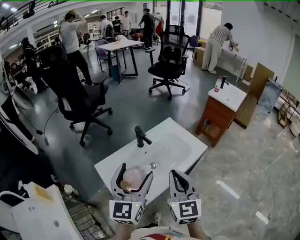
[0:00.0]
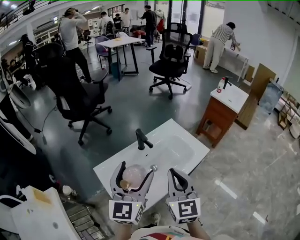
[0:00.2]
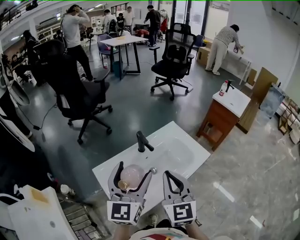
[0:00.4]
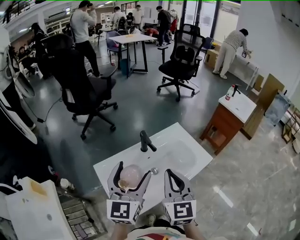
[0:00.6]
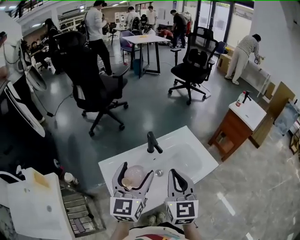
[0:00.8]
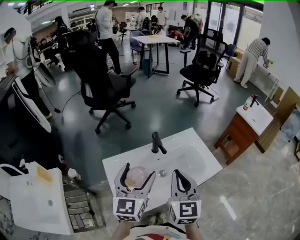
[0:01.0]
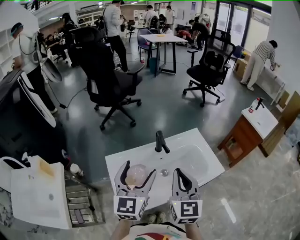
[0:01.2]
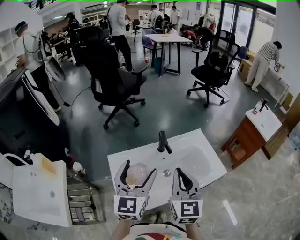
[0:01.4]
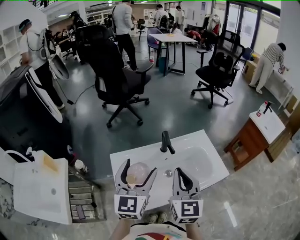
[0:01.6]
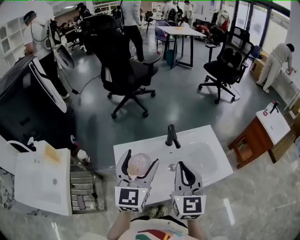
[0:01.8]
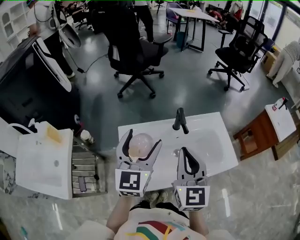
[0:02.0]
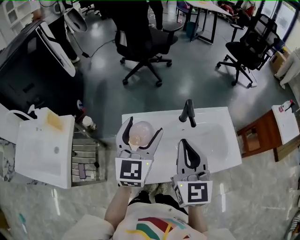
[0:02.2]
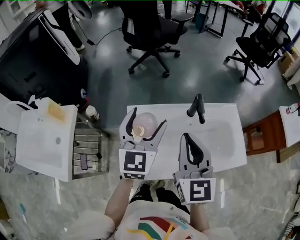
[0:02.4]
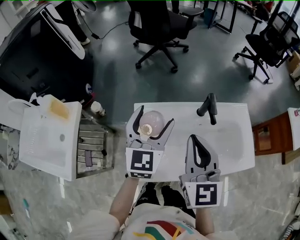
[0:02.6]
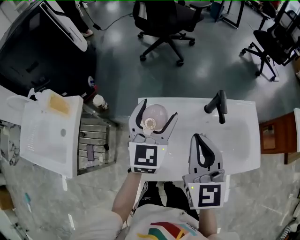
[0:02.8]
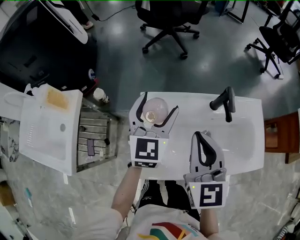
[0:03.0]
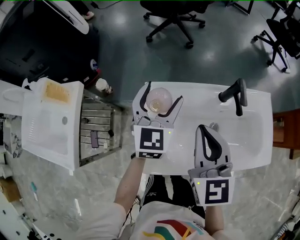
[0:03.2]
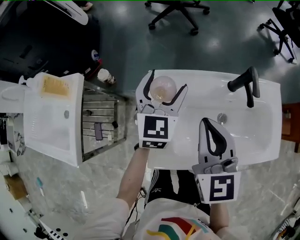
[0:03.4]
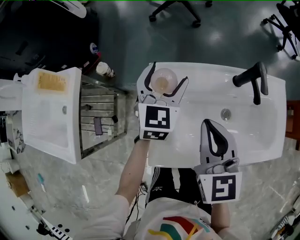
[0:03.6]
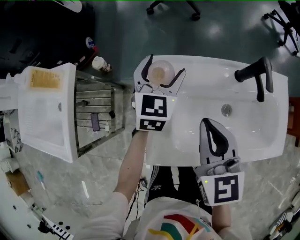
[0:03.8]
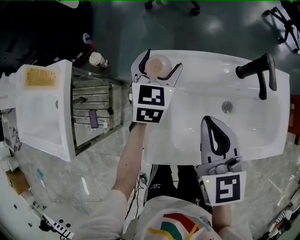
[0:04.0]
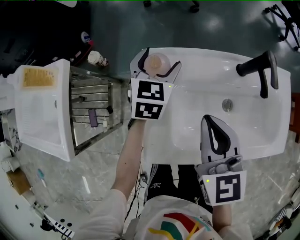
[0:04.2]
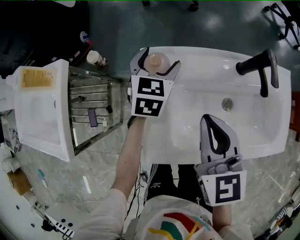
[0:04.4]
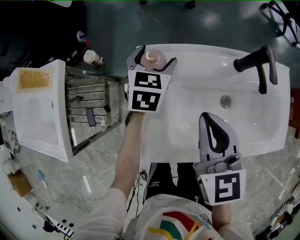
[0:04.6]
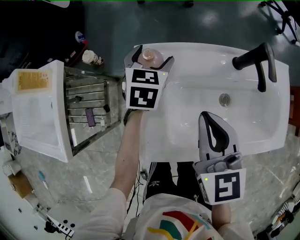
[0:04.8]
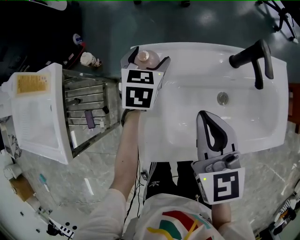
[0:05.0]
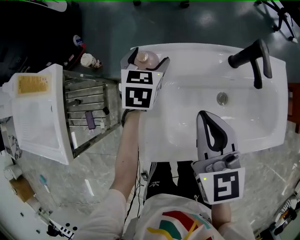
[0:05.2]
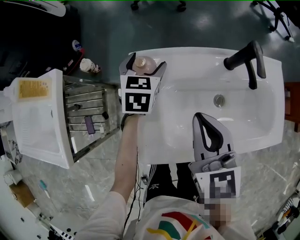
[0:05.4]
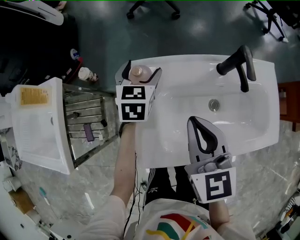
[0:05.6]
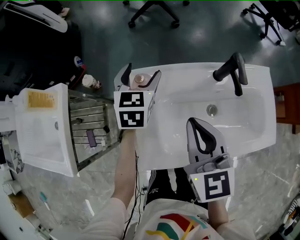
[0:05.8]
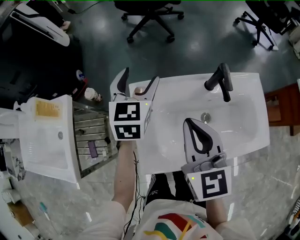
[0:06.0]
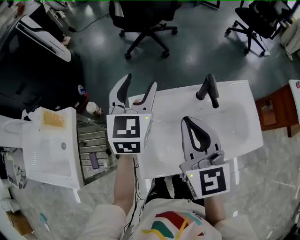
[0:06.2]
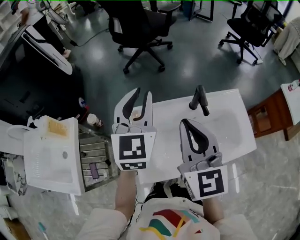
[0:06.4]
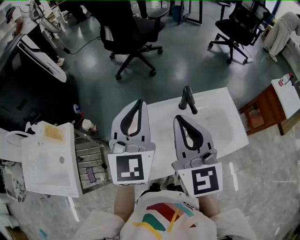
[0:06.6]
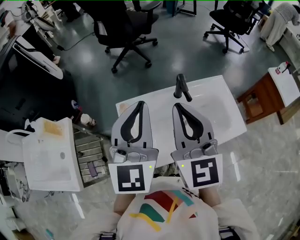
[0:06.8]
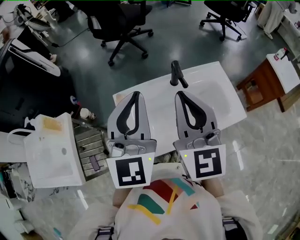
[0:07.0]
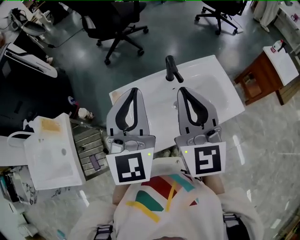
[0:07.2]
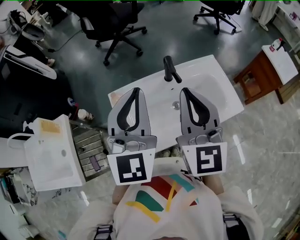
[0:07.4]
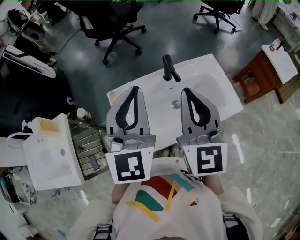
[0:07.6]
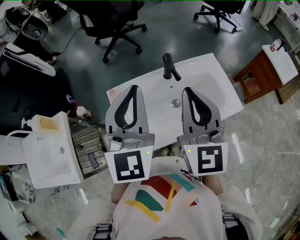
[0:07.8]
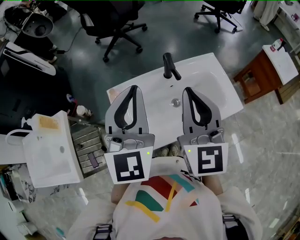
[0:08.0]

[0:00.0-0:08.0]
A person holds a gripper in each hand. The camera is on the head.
0:00.0 to 0:01.6: The right gripper is displaced forward by some 10 cm; the left gripper moves forward, roughly 5 cm, and swivels approximately 20 degrees.
0:01.6 to 0:03.2: The right gripper shifts about 15 cm to the left, downward and forward, and rotates some 30 degrees; the left gripper goes approximately 20 cm downward, forward and to the left.
0:03.2 to 0:04.8: The right gripper shifts approximately 10 cm downward. The left gripper heads downward, covering approximately 15 cm, and rotates about 20 degrees.
0:04.8 to 0:06.4: The right gripper heads upward, covering about 20 cm, and changes its angle by roughly 20 degrees. The left gripper is displaced upward by approximately 30 cm, tilts its fingers some 30 degrees upward, and closes its fingers.
0:06.4 to 0:08.0: The right gripper is displaced to the right and backward by some 10 cm, while the left gripper moves backward, to the right and upward, approximately 15 cm.

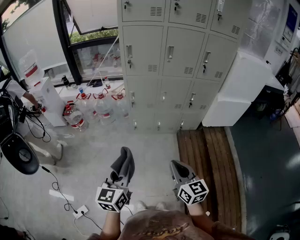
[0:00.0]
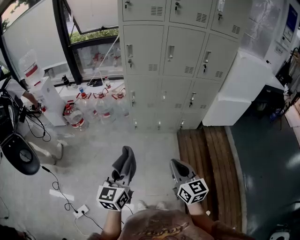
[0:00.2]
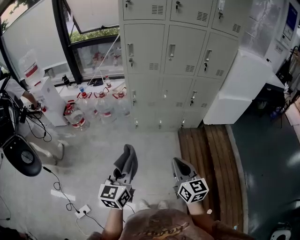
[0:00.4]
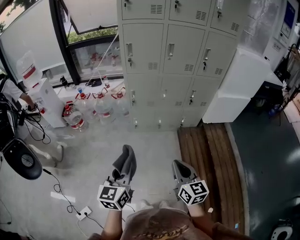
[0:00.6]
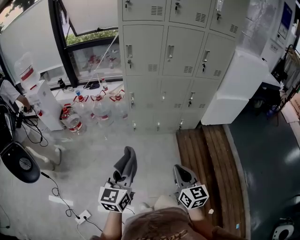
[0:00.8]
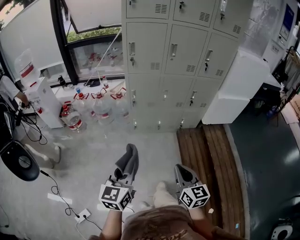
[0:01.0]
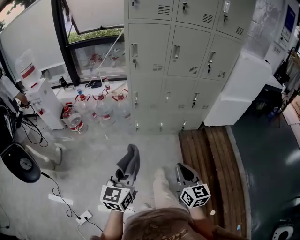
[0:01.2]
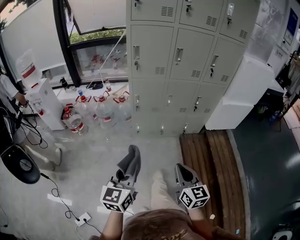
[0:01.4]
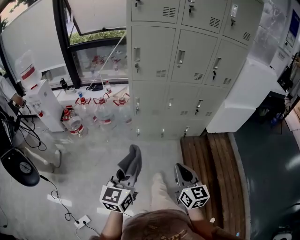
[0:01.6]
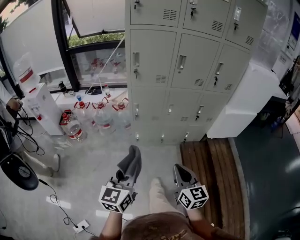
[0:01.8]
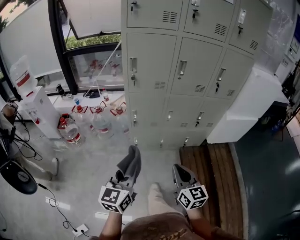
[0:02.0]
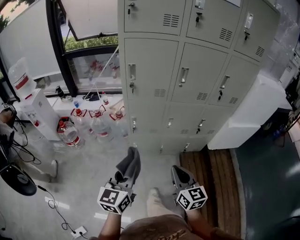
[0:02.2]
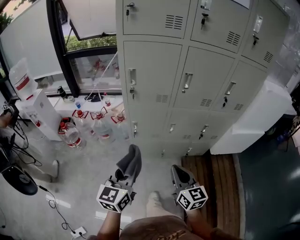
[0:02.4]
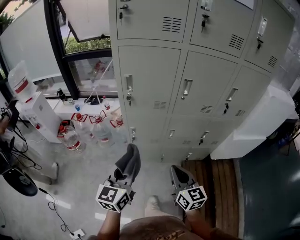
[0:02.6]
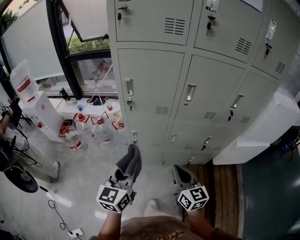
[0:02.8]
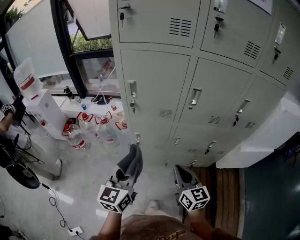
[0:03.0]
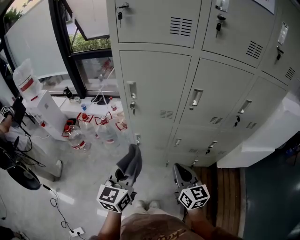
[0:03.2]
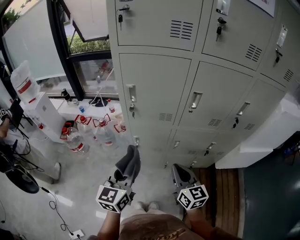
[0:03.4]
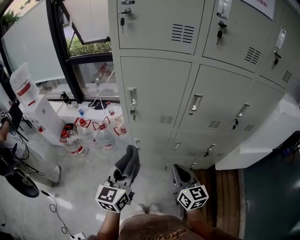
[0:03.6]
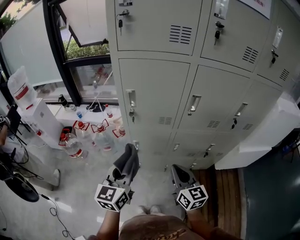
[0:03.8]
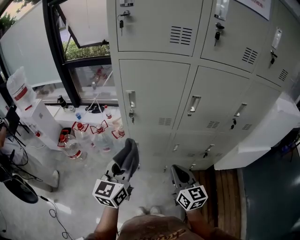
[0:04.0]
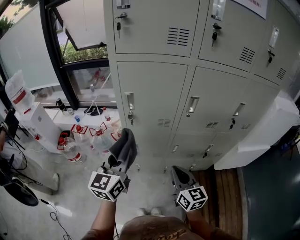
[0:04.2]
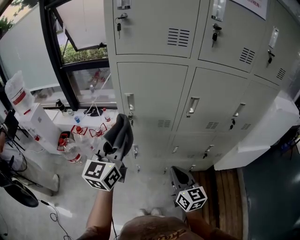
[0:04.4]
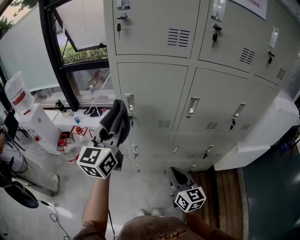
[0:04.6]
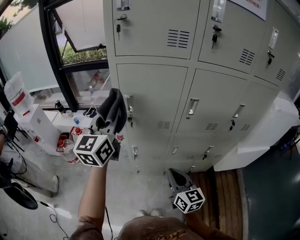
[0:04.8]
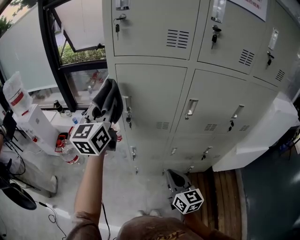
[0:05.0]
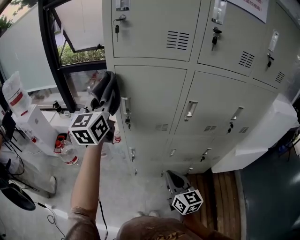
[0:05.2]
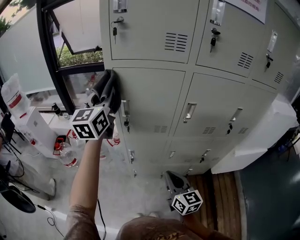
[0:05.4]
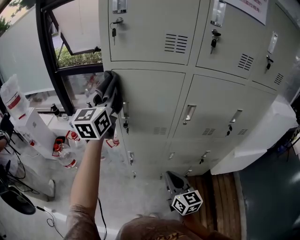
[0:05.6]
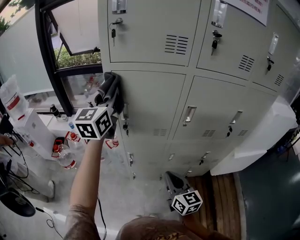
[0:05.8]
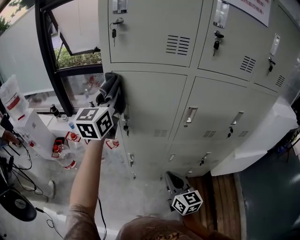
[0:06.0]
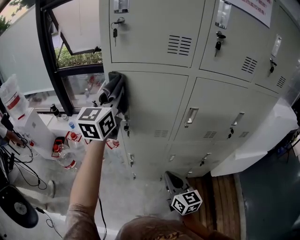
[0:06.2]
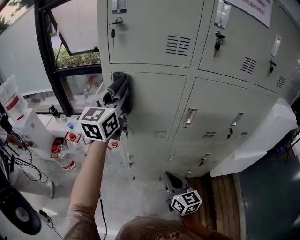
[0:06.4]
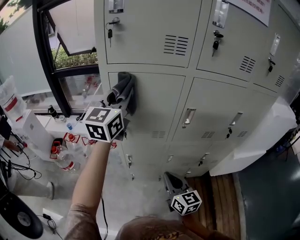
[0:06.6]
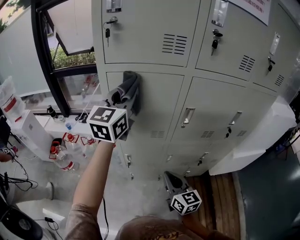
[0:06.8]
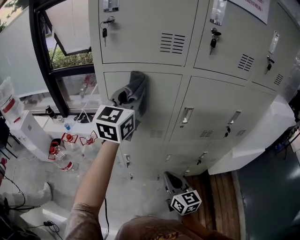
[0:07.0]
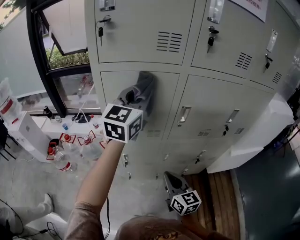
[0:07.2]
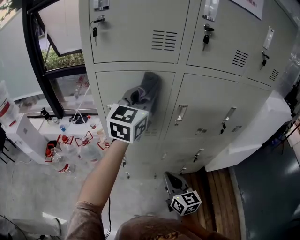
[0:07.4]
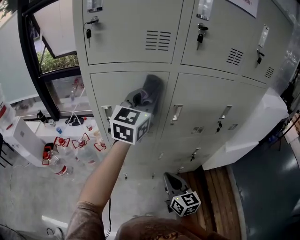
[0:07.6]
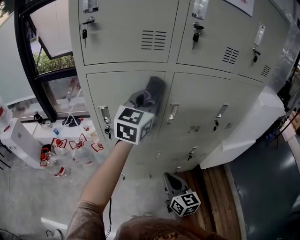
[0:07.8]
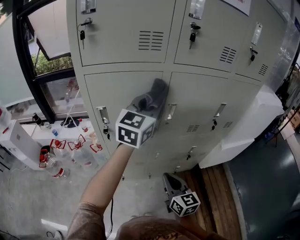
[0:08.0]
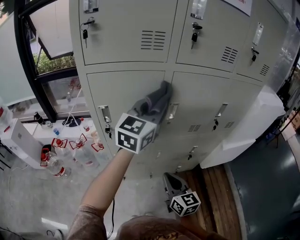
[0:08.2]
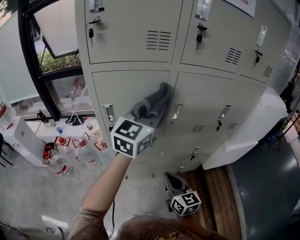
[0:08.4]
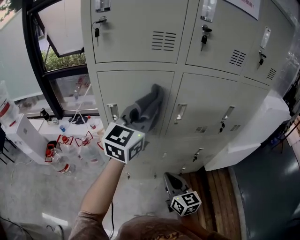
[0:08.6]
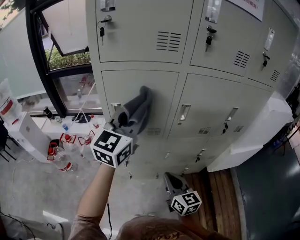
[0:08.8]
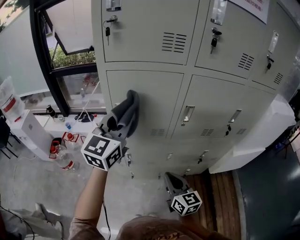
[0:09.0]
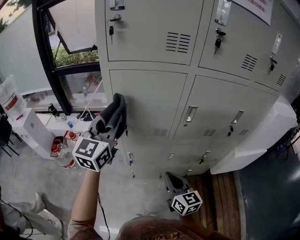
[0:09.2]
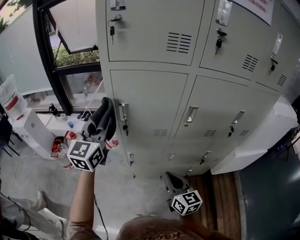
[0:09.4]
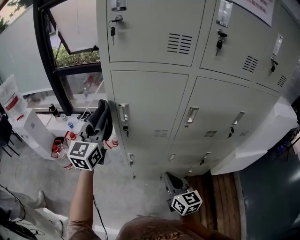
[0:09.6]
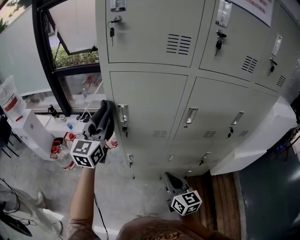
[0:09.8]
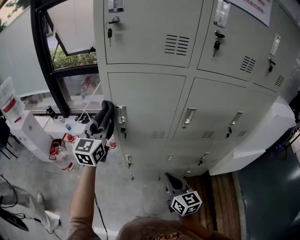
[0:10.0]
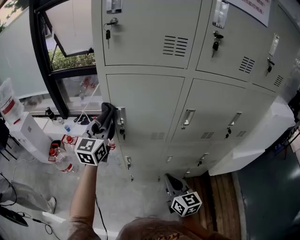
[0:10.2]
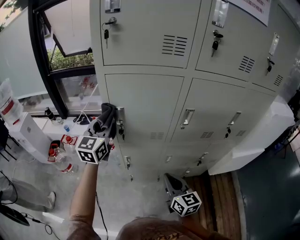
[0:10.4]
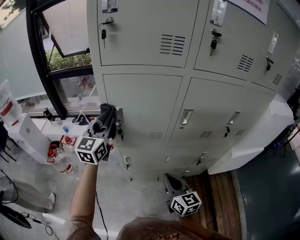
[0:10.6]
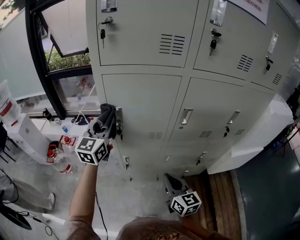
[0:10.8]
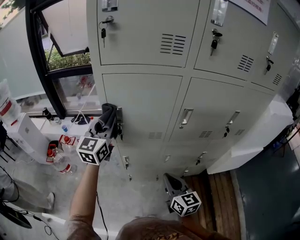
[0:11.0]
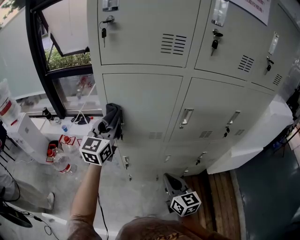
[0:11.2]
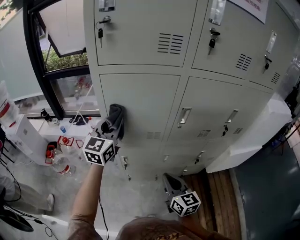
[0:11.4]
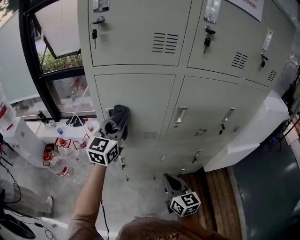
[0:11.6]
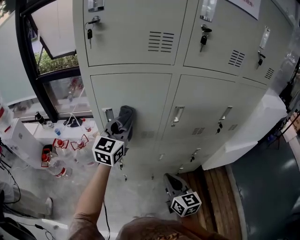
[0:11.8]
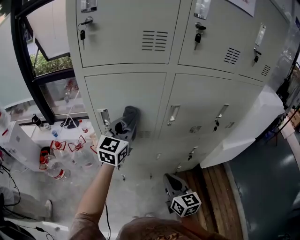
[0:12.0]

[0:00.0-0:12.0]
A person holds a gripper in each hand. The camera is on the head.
0:00.0 to 0:01.6: The grippers both shift forward by some 5 cm.
0:01.6 to 0:03.0: The two grippers go approximately 30 cm forward.
0:03.0 to 0:04.4: The left gripper travels forward, upward and to the left by some 15 cm.
0:04.4 to 0:06.0: The left gripper moves forward and upward, approximately 20 cm.
0:06.0 to 0:07.6: The left gripper moves to the right, roughly 20 cm.
0:07.6 to 0:09.0: The left gripper is displaced to the left and backward by some 15 cm.
0:09.0 to 0:10.4: The left gripper heads to the left, downward and forward, covering roughly 15 cm.
0:10.4 to 0:12.0: The left gripper goes some 15 cm to the right.

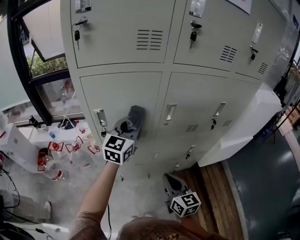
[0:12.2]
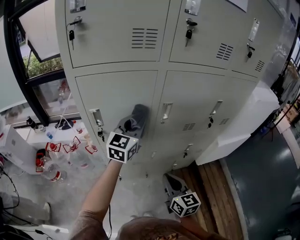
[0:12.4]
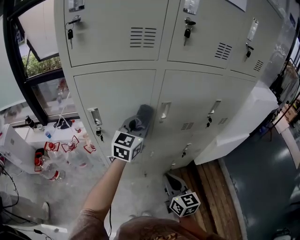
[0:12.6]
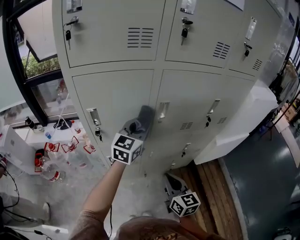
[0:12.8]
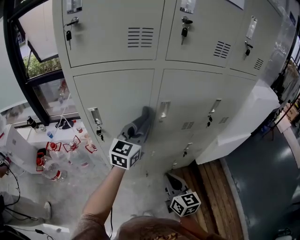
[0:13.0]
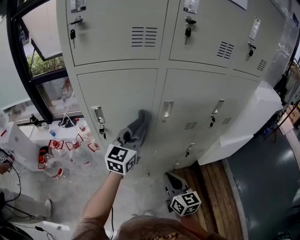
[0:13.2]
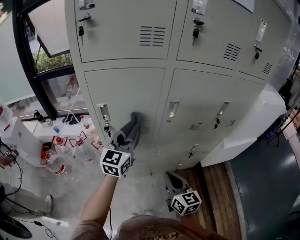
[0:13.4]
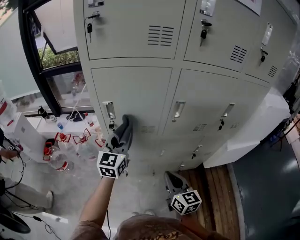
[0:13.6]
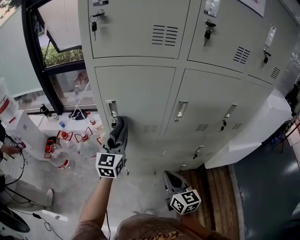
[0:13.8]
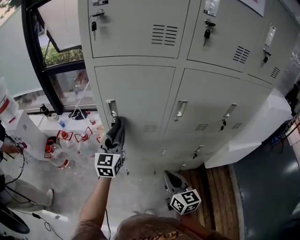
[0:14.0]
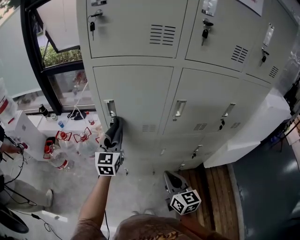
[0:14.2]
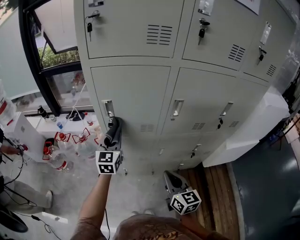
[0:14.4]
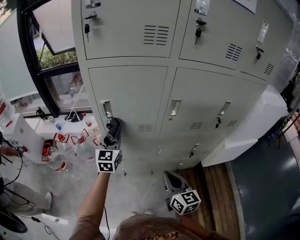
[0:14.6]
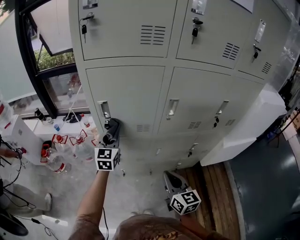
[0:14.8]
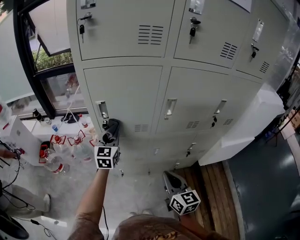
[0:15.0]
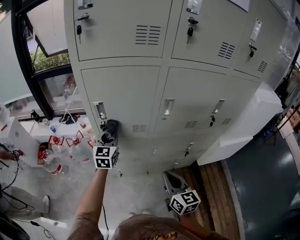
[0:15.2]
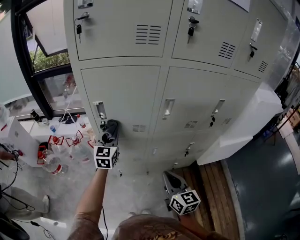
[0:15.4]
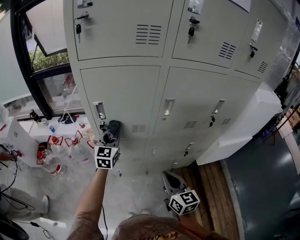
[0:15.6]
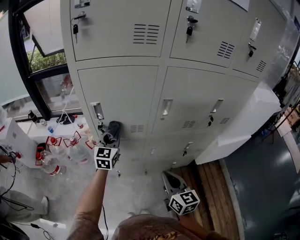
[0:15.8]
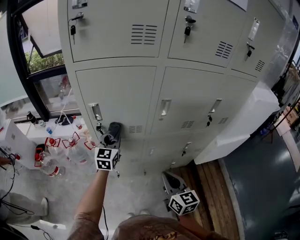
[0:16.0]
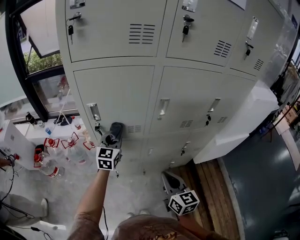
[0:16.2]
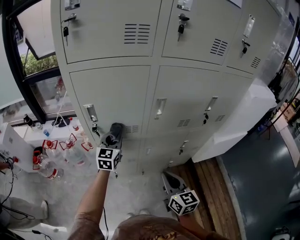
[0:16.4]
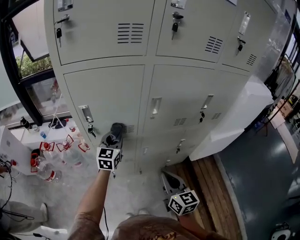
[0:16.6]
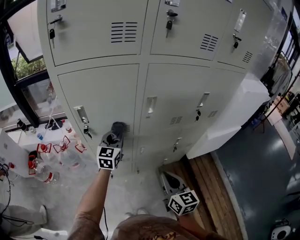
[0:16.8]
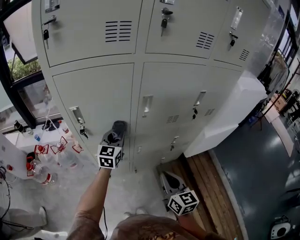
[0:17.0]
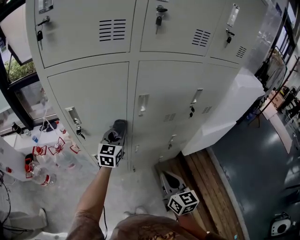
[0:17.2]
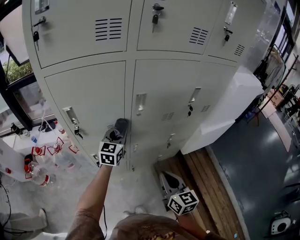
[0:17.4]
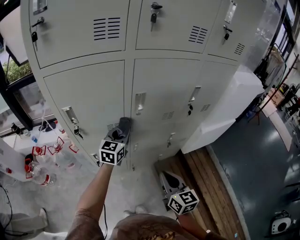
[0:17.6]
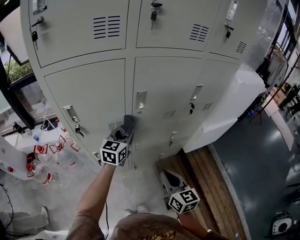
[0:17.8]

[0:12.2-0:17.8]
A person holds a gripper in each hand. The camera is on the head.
0:12.2 to 0:13.6: The left gripper heads to the left, backward and downward, covering approximately 10 cm.
0:13.6 to 0:15.0: The left gripper travels downward by approximately 5 cm.
0:15.0 to 0:16.4: The left gripper heads to the right, covering roughly 5 cm.
0:16.4 to 0:17.8: The right gripper shifts by about 5 cm. The left gripper shifts about 15 cm to the right.
